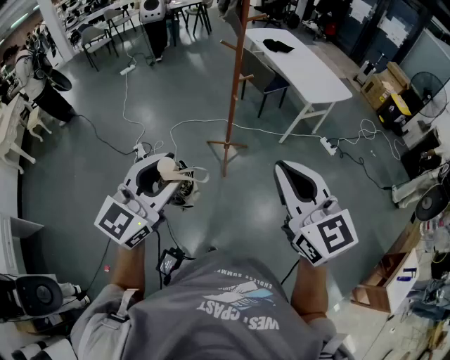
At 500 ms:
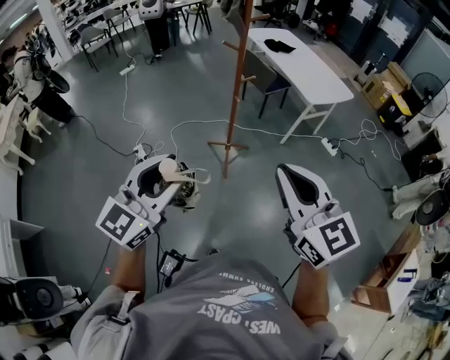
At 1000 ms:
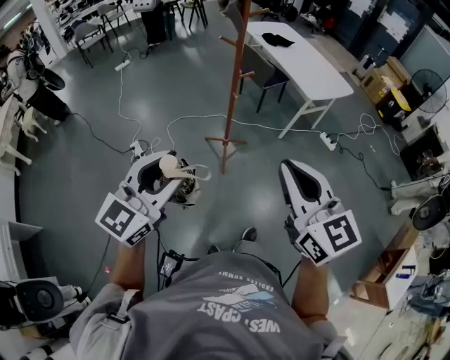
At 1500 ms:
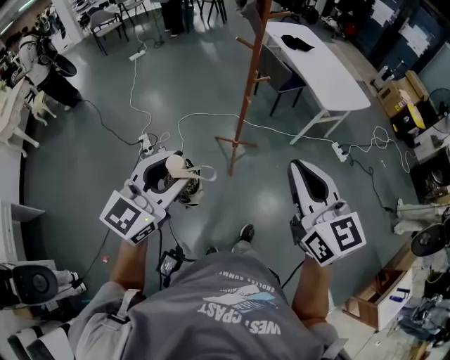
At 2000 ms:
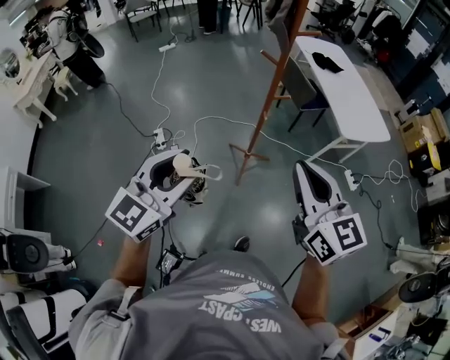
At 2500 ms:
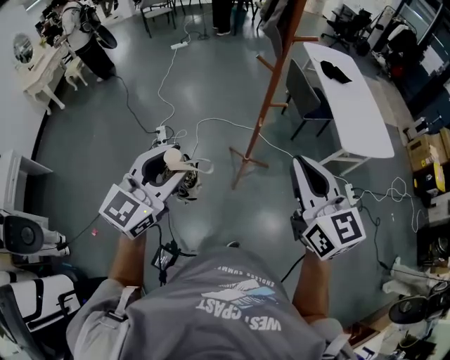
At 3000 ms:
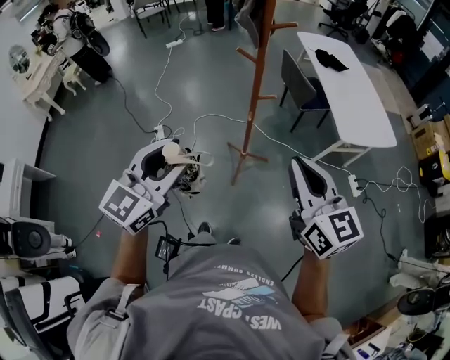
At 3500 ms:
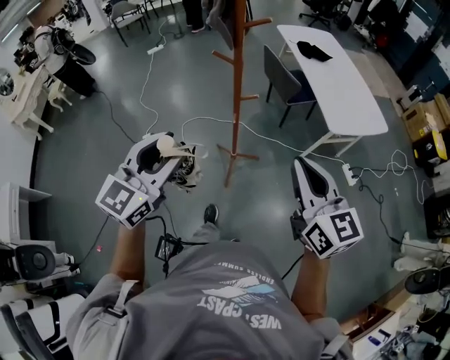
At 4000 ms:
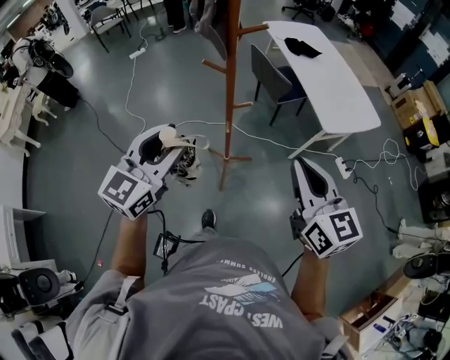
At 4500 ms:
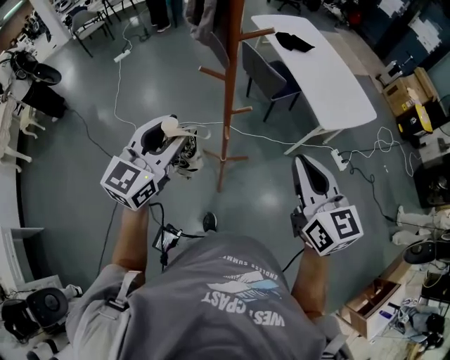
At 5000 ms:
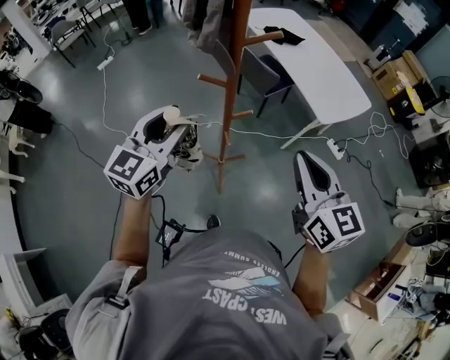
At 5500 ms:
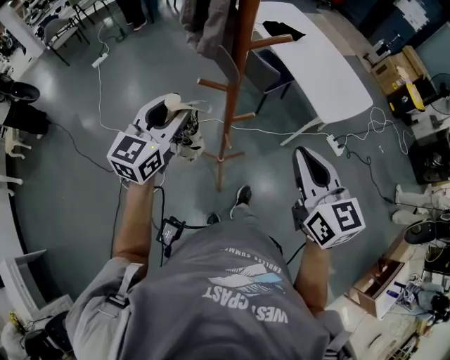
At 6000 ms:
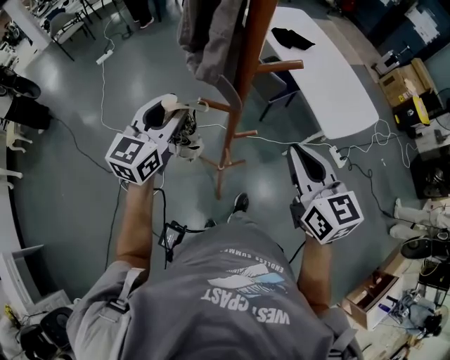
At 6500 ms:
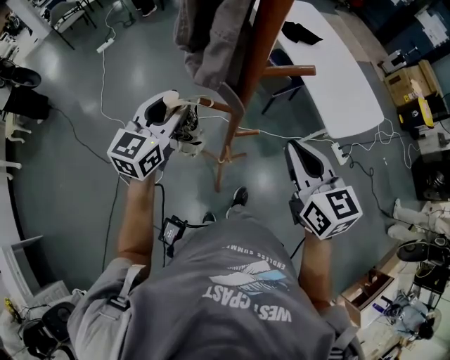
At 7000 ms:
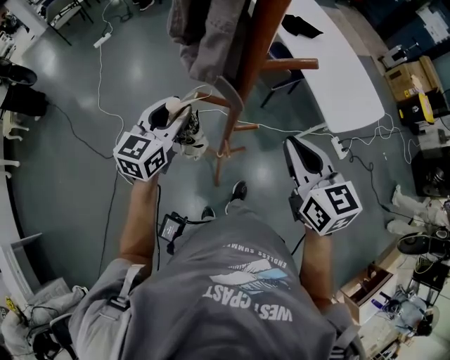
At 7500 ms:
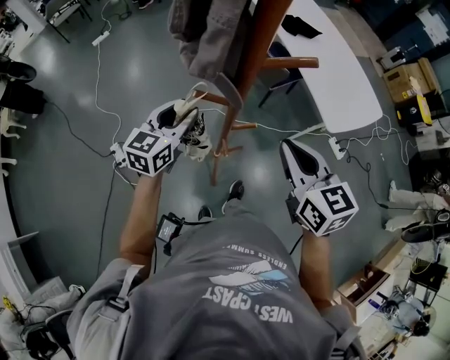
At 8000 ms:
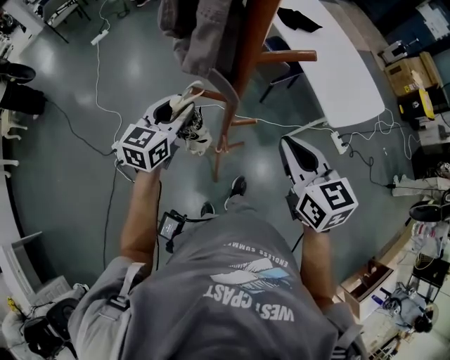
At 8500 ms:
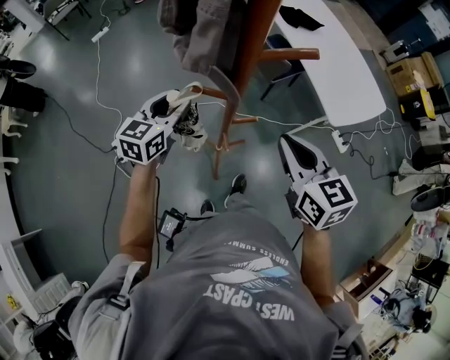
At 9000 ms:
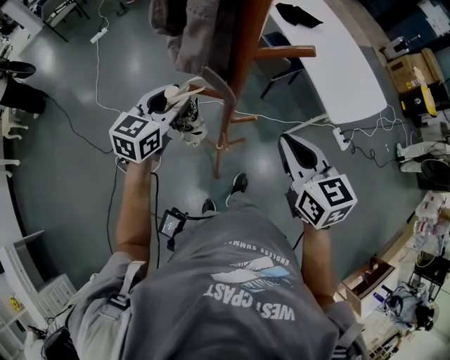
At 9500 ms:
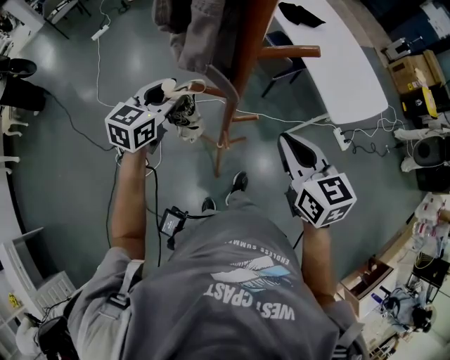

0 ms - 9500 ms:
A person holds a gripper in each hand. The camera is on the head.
0 ms - 2000 ms: Both grippers travel together forward, roughly 15 cm.
2000 ms - 4000 ms: The left gripper travels forward by roughly 20 cm; the right gripper is displaced forward and to the right by roughly 15 cm.
4000 ms - 5500 ms: The left gripper is displaced forward by roughly 20 cm, while the right gripper goes about 10 cm forward.
5500 ms - 7500 ms: The left gripper travels downward and forward by approximately 15 cm. Meanwhile the right gripper moves forward and downward, about 10 cm.
7500 ms - 9500 ms: The grippers stay close to where they were, moving slightly.

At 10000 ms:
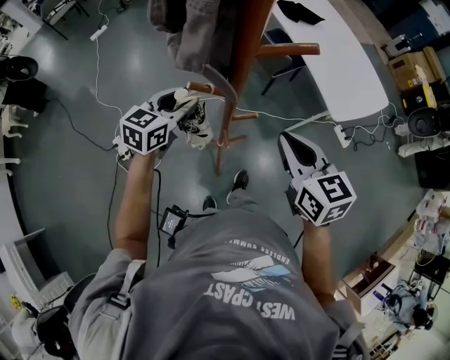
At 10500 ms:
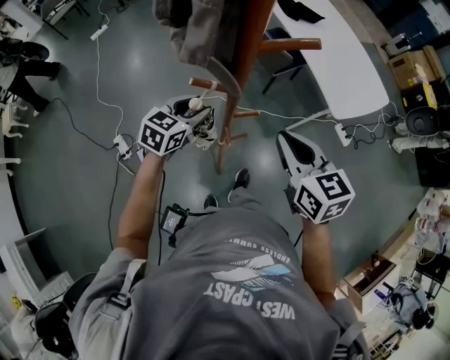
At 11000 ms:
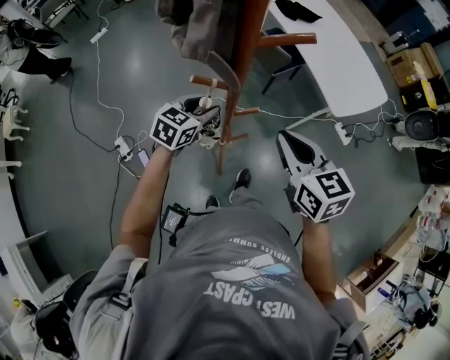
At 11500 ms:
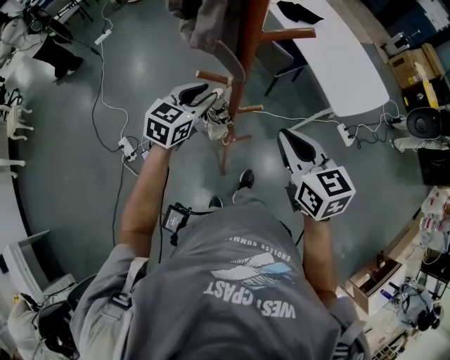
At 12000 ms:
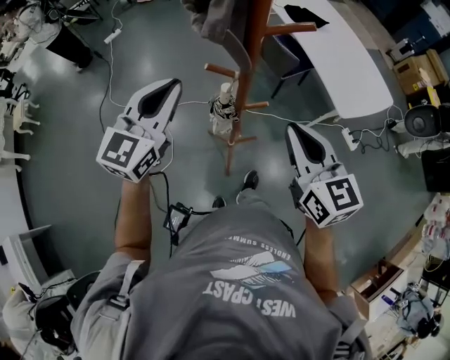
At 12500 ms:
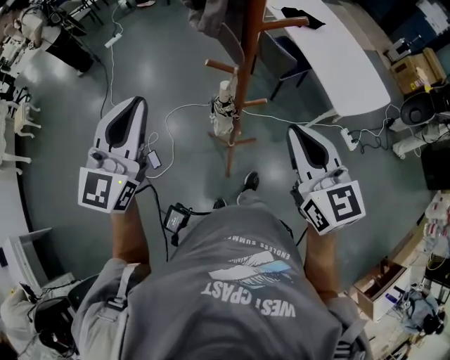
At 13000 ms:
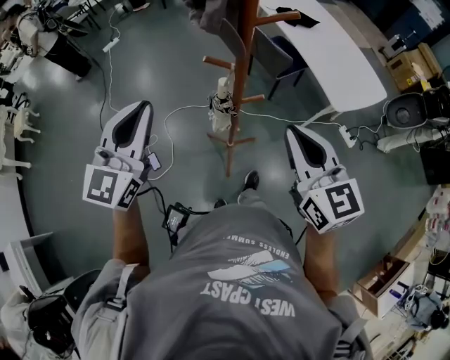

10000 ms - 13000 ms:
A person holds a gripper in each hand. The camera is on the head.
10000 ms - 11500 ms: The left gripper goes approximately 5 cm to the right.
11500 ms - 13000 ms: The right gripper is displaced upward by about 5 cm. The left gripper goes about 25 cm upward, backward and to the left, swivels some 30 degrees, and closes.

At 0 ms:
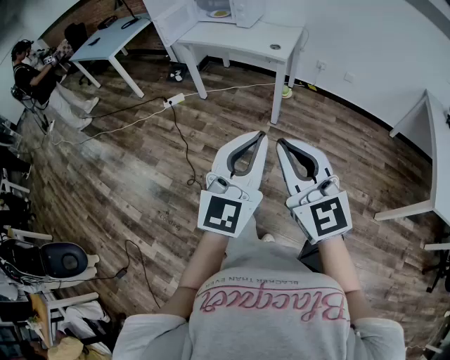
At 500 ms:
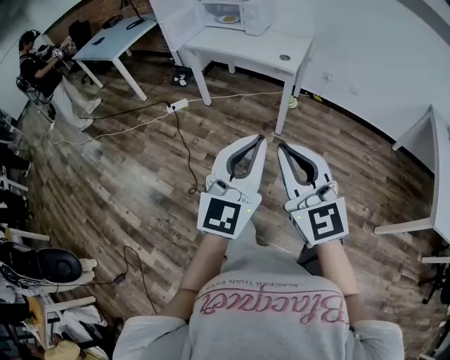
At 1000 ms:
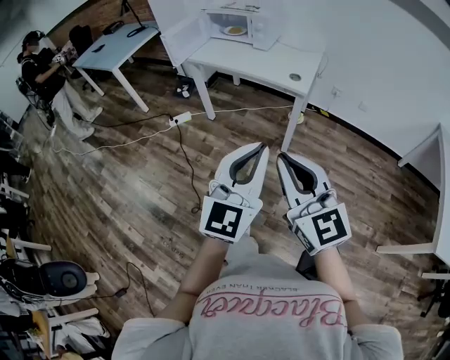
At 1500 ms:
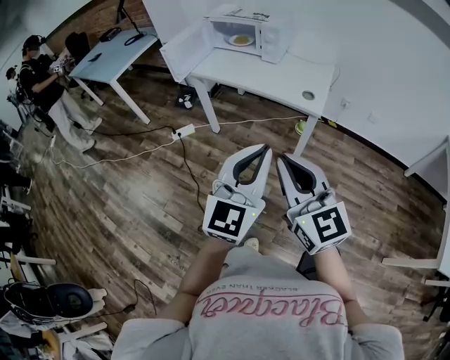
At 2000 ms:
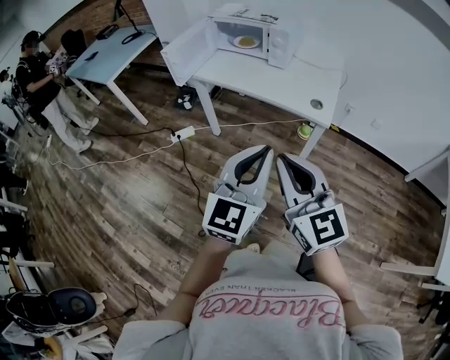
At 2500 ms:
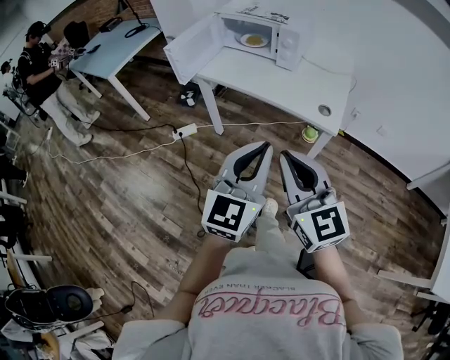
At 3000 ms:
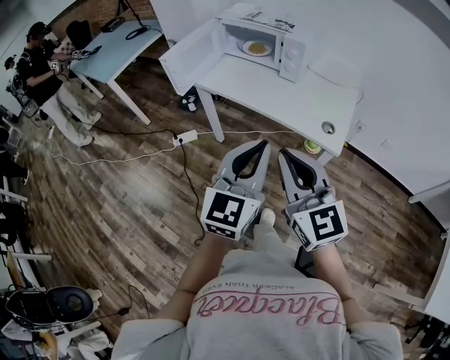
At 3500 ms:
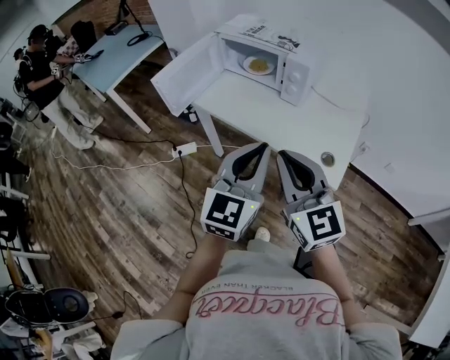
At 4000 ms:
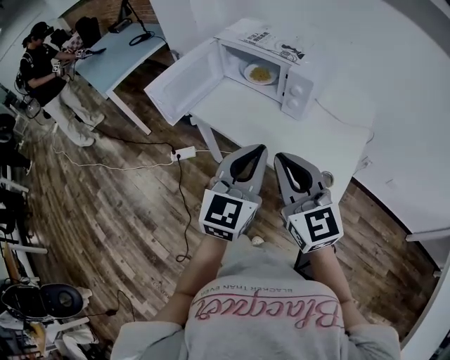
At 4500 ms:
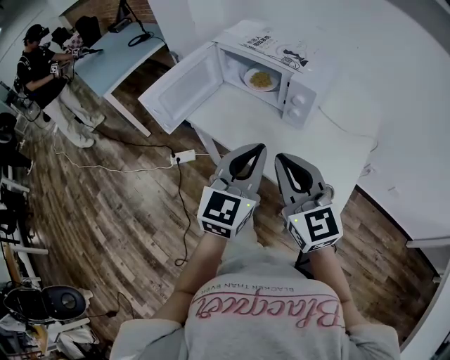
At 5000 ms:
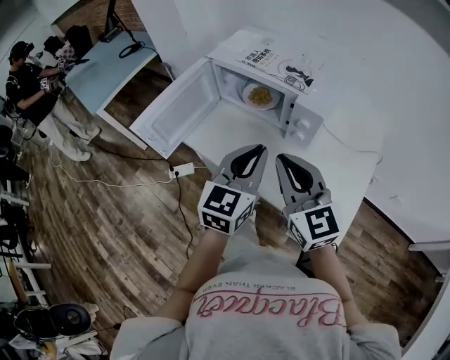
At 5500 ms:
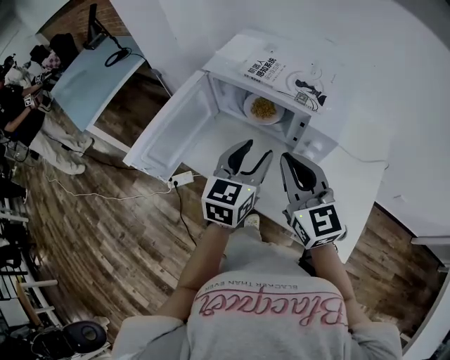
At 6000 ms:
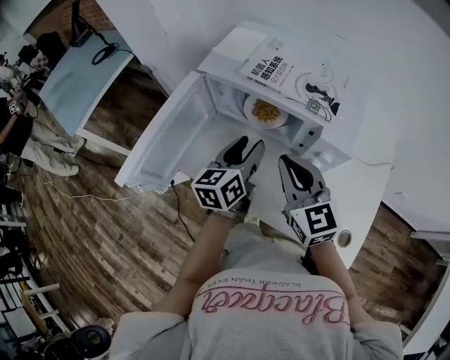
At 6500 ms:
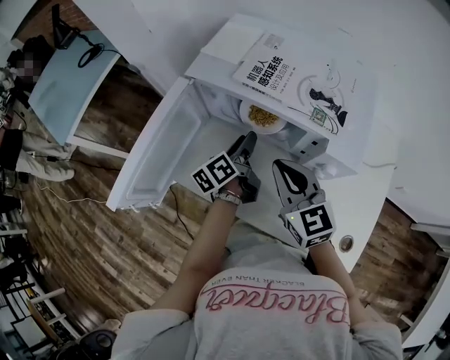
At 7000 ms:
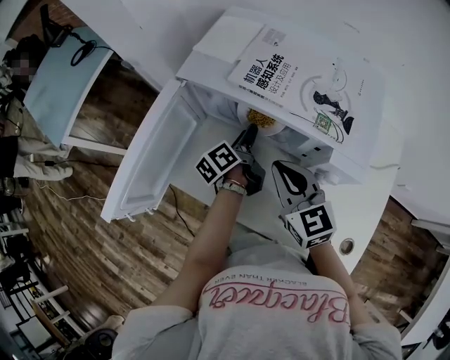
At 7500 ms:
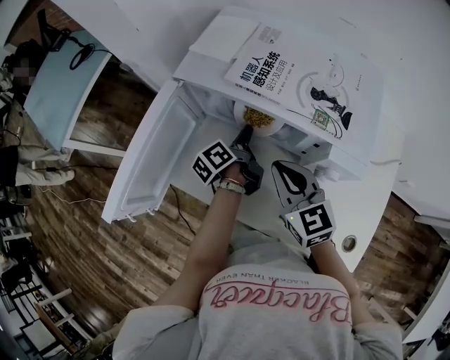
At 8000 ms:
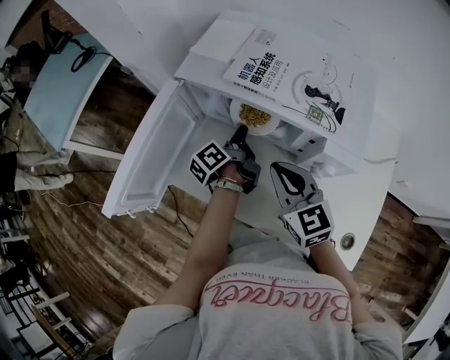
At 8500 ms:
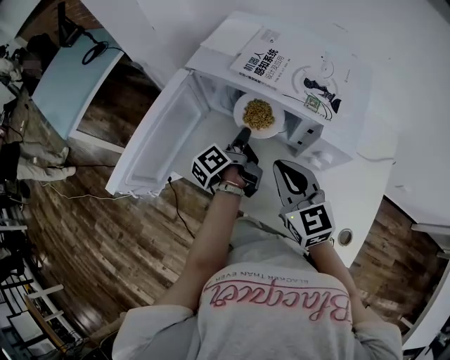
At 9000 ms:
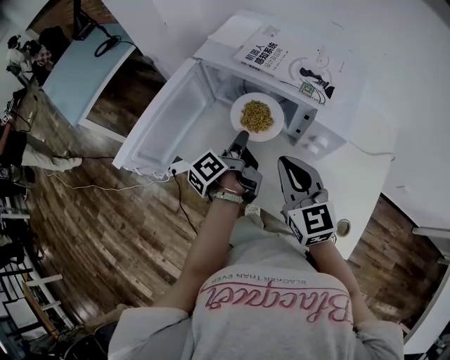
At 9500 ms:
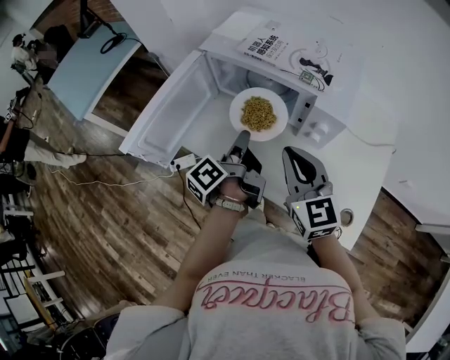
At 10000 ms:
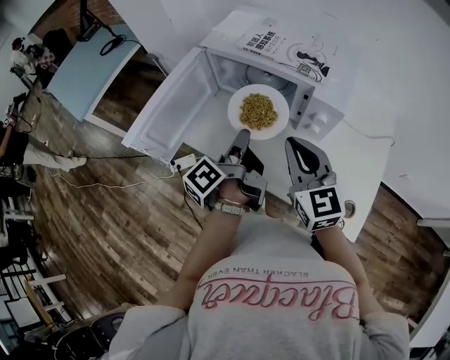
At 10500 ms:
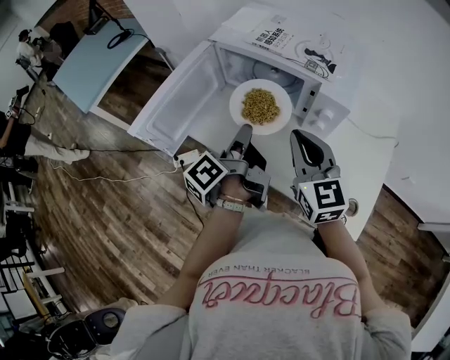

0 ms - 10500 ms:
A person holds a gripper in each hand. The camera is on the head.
0 ms - 2000 ms: The two grippers travel together, forward, about 40 cm.
2000 ms - 4000 ms: The two grippers go some 35 cm forward.
4000 ms - 6500 ms: The left gripper moves forward and downward, some 50 cm, rolls counterclockwise, seen from behind, by some 70 degrees, and opens, while the right gripper moves forward, about 35 cm.
6500 ms - 8500 ms: The left gripper closes up.
8500 ms - 10500 ms: The left gripper moves backward and upward, about 20 cm. Meanwhile the right gripper moves backward and upward, roughly 10 cm.

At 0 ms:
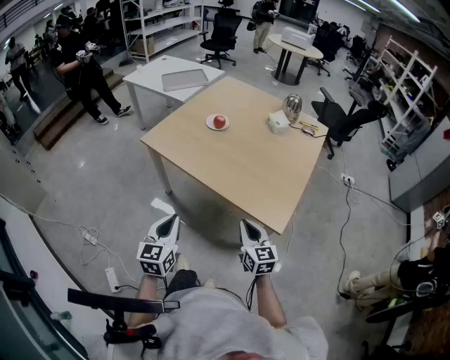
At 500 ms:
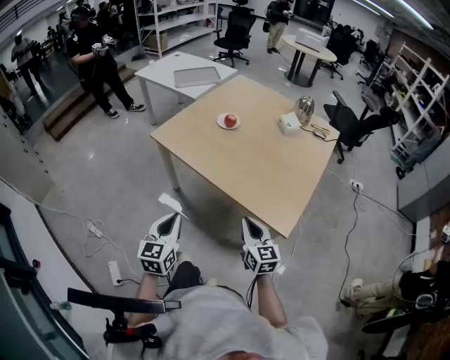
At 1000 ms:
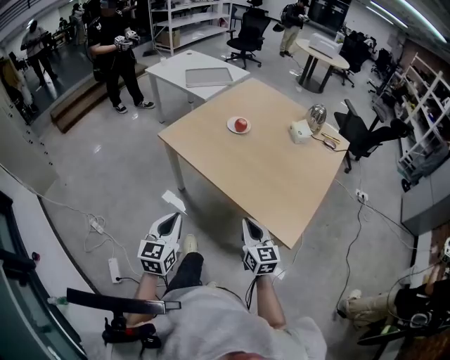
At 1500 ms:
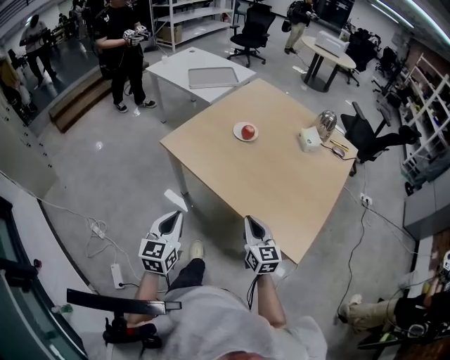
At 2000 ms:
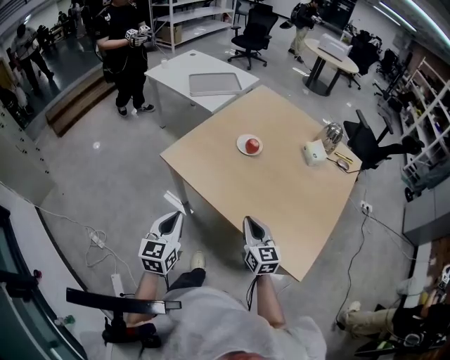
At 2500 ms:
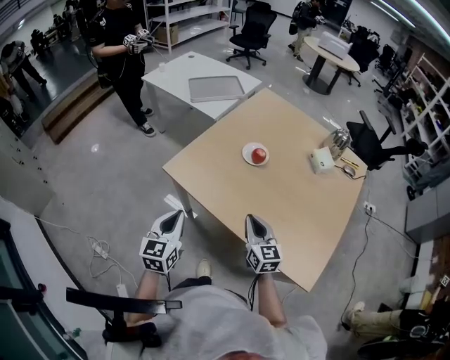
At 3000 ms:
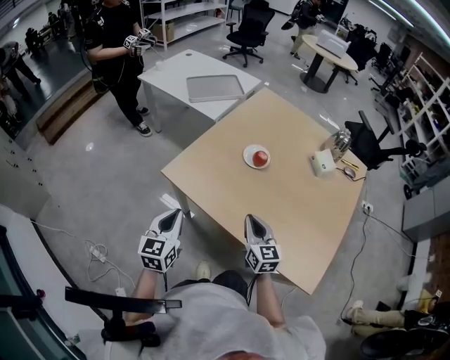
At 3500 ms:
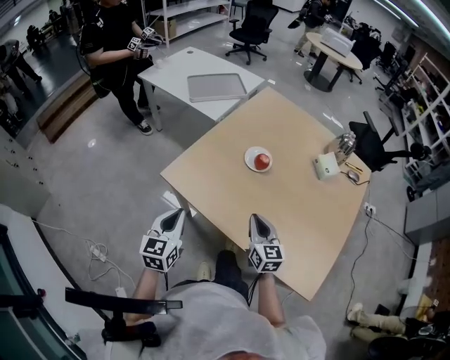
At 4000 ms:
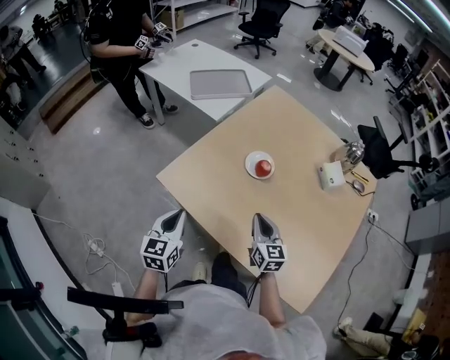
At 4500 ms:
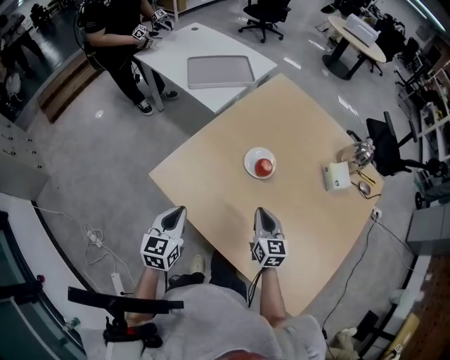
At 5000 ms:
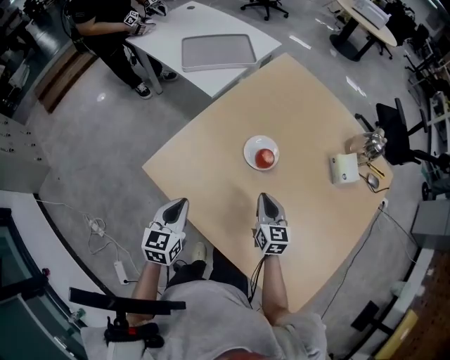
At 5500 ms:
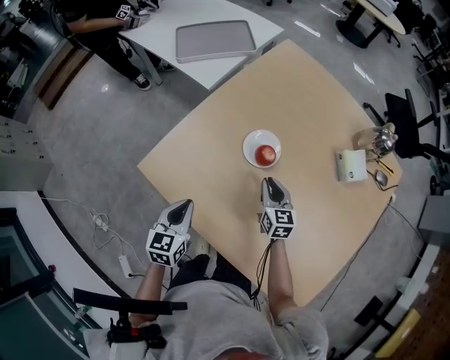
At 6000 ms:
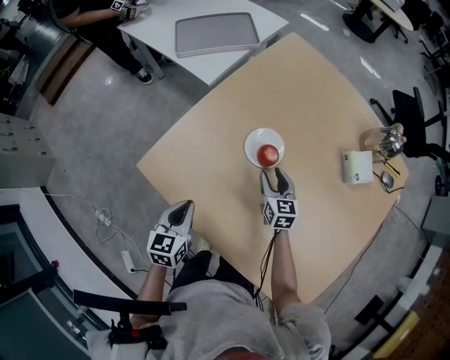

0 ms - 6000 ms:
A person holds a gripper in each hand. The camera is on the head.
0 ms - 2000 ms: The left gripper travels forward and to the left by roughly 25 cm. Meanwhile the right gripper heads forward, covering approximately 25 cm.
2000 ms - 4000 ms: The two grippers go approximately 20 cm forward.
4000 ms - 6000 ms: The right gripper heads forward and downward, covering some 25 cm, and opens up; the left gripper heads forward, downward and to the right, covering about 15 cm.
